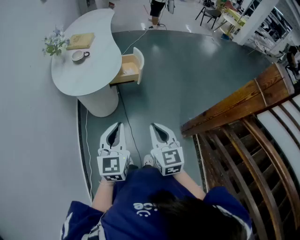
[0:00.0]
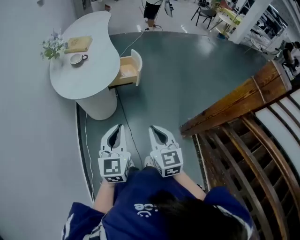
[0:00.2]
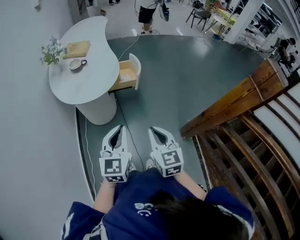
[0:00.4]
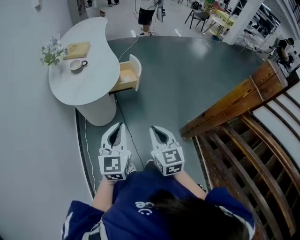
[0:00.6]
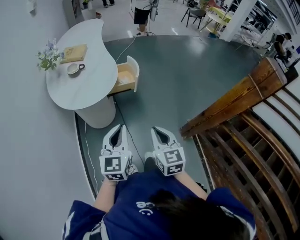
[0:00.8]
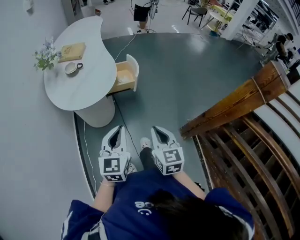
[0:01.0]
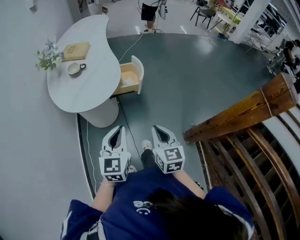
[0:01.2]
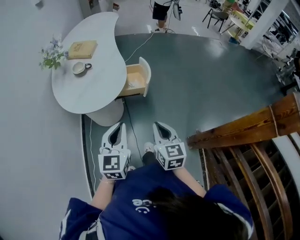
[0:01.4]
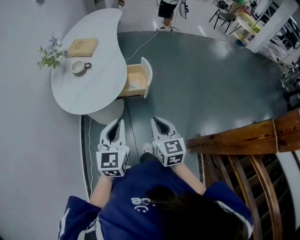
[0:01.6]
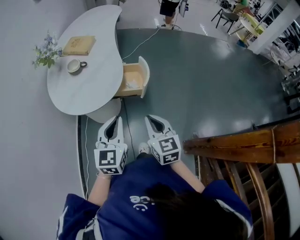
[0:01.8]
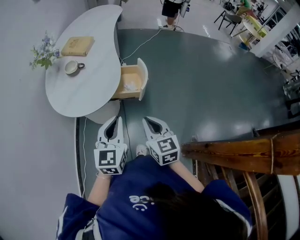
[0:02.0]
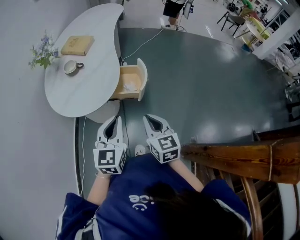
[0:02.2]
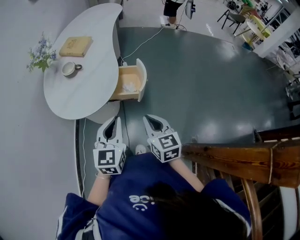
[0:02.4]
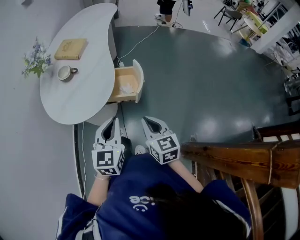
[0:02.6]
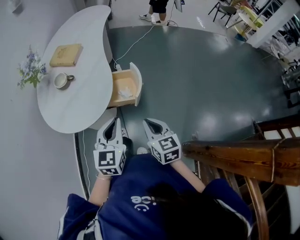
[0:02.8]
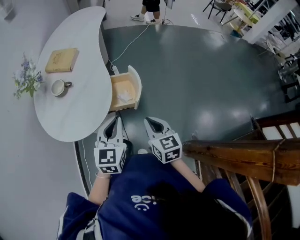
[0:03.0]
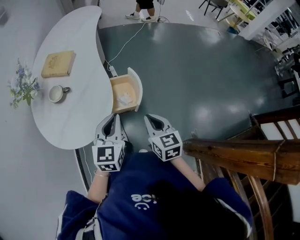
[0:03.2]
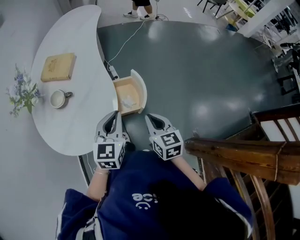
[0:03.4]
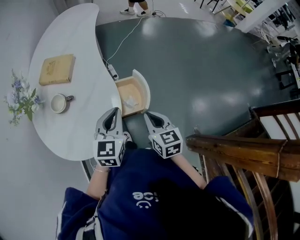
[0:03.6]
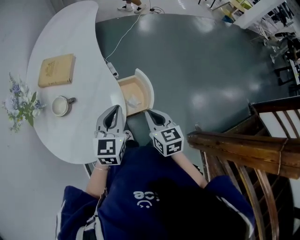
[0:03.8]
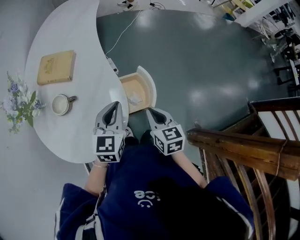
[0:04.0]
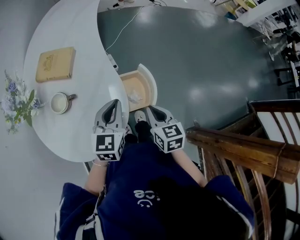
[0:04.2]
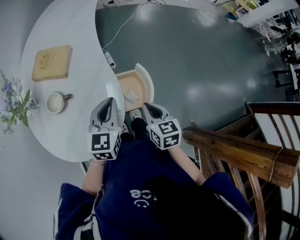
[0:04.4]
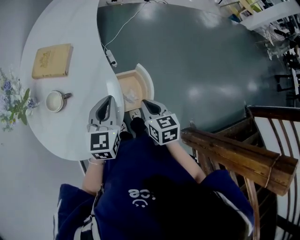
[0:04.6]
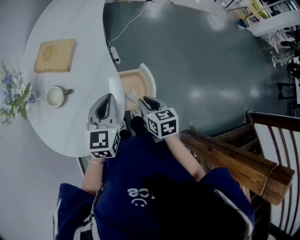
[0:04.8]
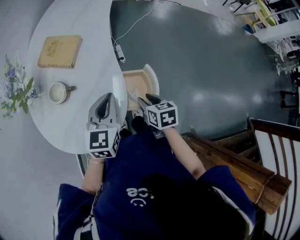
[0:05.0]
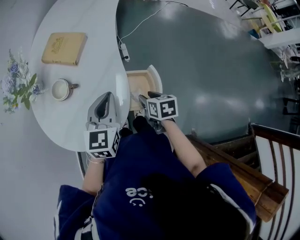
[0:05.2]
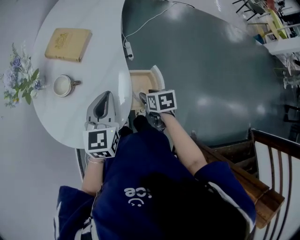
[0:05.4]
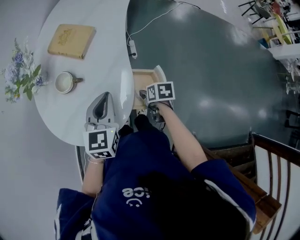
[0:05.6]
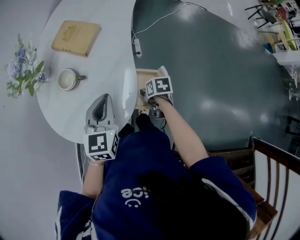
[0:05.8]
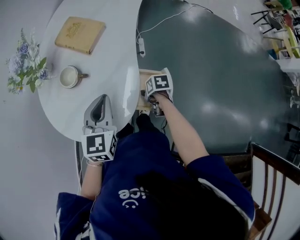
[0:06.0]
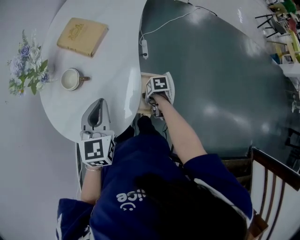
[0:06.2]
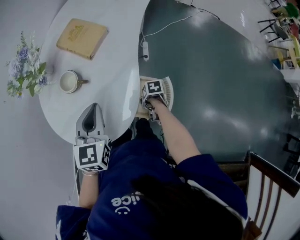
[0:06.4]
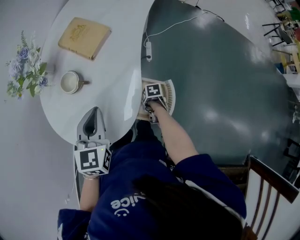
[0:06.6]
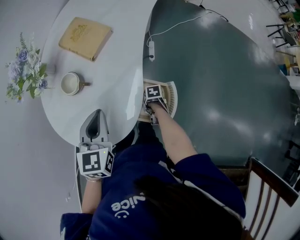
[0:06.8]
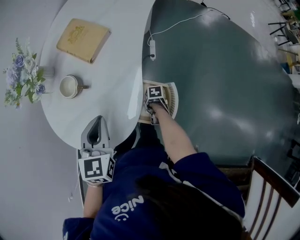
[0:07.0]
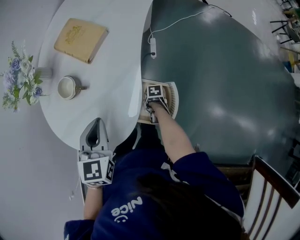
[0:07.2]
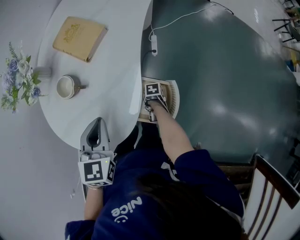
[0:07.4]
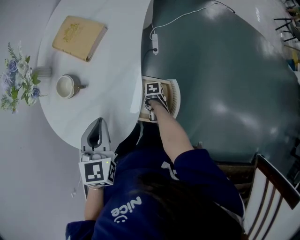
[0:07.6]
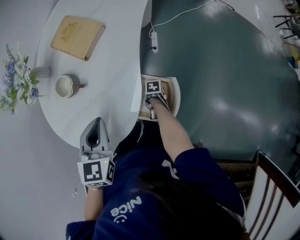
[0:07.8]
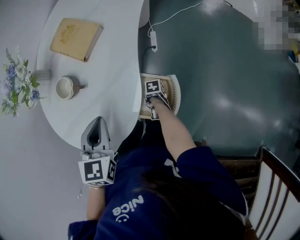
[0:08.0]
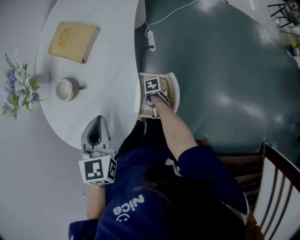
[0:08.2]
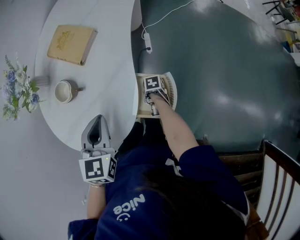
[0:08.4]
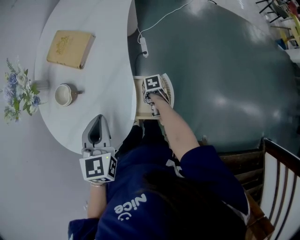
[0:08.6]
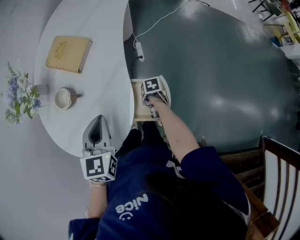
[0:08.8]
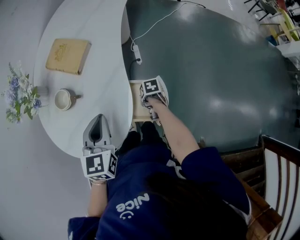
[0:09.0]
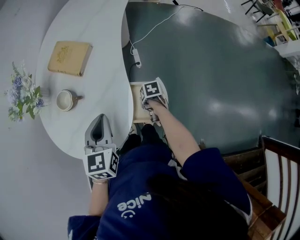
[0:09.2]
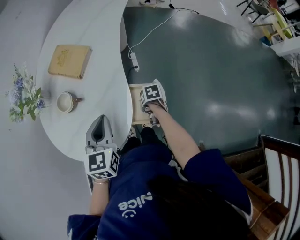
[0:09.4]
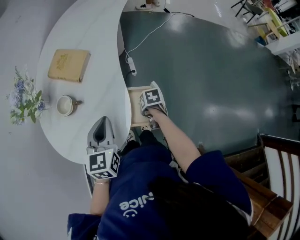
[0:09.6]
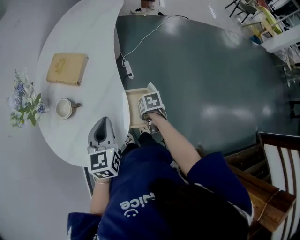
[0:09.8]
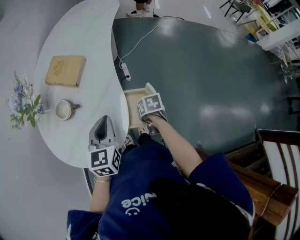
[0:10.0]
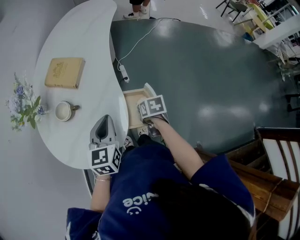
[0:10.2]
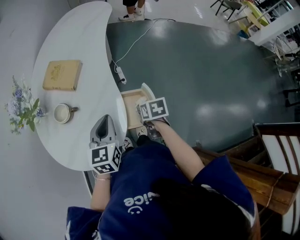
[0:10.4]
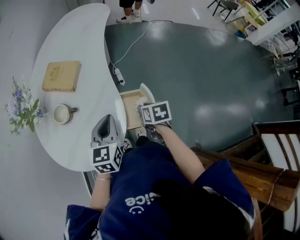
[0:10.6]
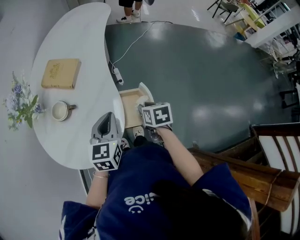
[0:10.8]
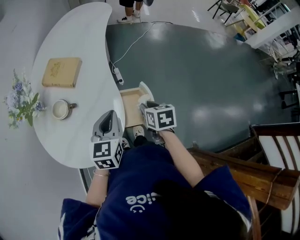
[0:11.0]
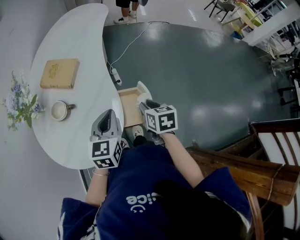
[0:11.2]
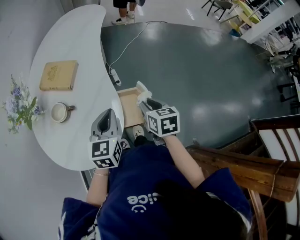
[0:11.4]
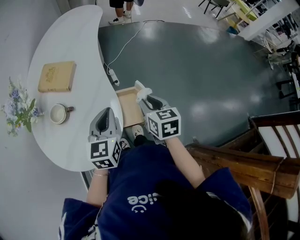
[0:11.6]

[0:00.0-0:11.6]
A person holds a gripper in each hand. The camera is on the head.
0:00.0 to 0:01.4: Both grippers travel together forward, about 15 cm.
0:01.4 to 0:02.8: Both grippers travel together forward and to the right, some 15 cm.
0:02.8 to 0:04.4: Both grippers move forward and to the left, roughly 20 cm.
0:04.4 to 0:05.8: The right gripper is displaced downward by about 15 cm, swivels about 50 degrees, and opens up. Meanwhile the left gripper changes place by some 5 cm, and swivels some 20 degrees.
0:05.8 to 0:07.2: The right gripper goes about 15 cm downward, and changes its angle by approximately 30 degrees.
0:07.2 to 0:08.8: The right gripper shifts by some 5 cm, and closes up.
0:08.8 to 0:10.2: The right gripper is displaced upward by approximately 15 cm, and changes its angle by some 30 degrees.
0:10.2 to 0:11.6: The right gripper goes approximately 15 cm upward, and changes its angle by approximately 30 degrees.

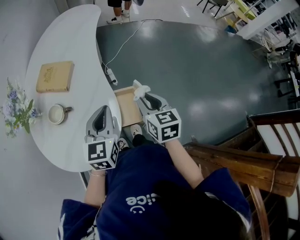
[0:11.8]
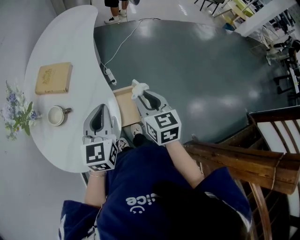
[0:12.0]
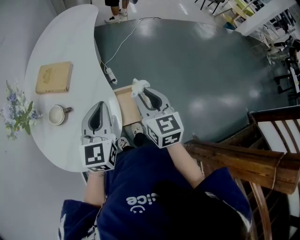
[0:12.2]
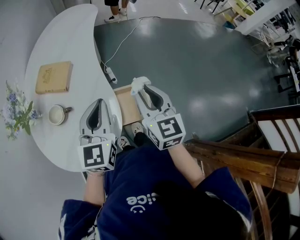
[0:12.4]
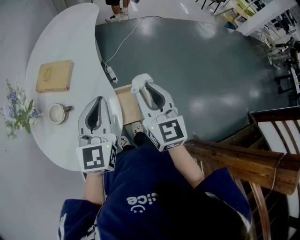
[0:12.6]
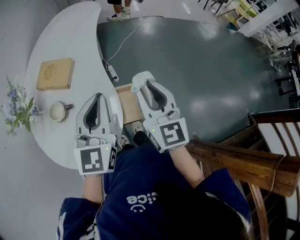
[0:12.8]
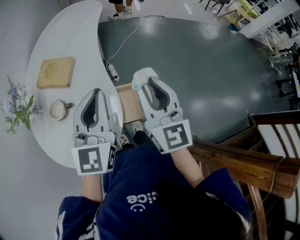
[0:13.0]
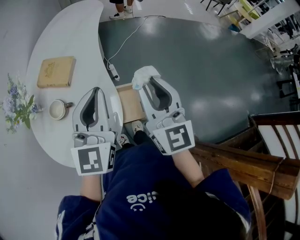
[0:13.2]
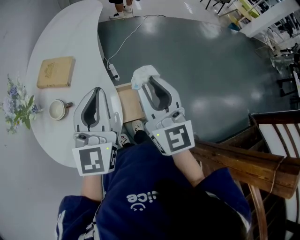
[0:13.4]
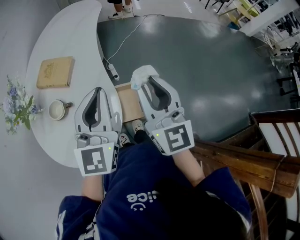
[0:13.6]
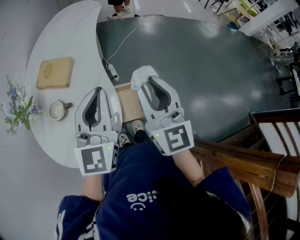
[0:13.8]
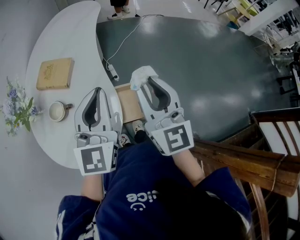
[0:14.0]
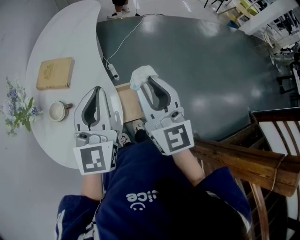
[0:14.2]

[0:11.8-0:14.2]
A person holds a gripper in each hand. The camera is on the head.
0:11.8 to 0:13.0: Both grippers travel together upward, about 15 cm. The right gripper tips its fingers upward by approximately 30 degrees.
0:13.0 to 0:14.2: The grippers stay close to where they were, moving slightly.

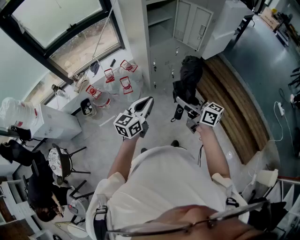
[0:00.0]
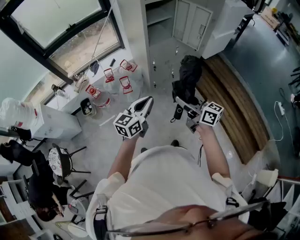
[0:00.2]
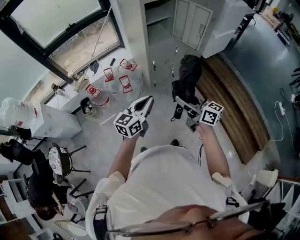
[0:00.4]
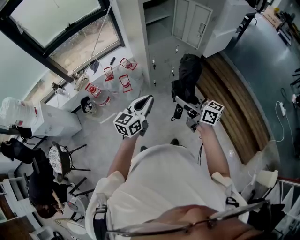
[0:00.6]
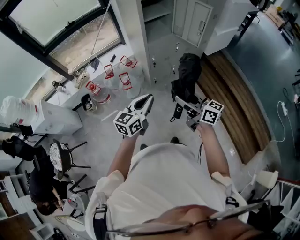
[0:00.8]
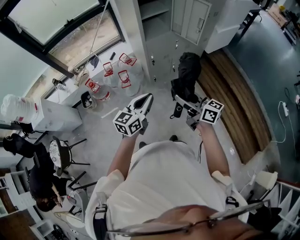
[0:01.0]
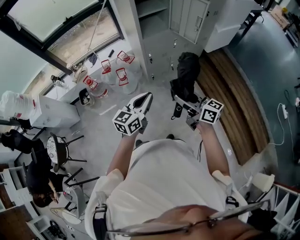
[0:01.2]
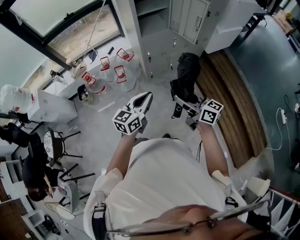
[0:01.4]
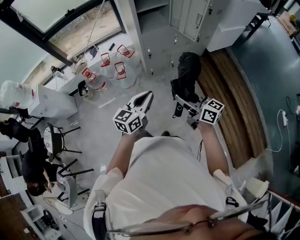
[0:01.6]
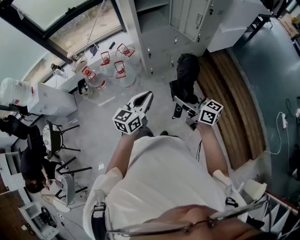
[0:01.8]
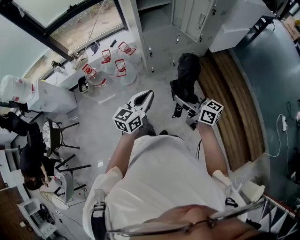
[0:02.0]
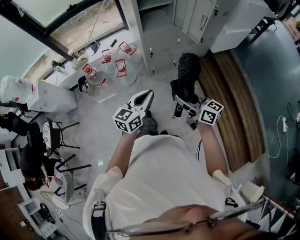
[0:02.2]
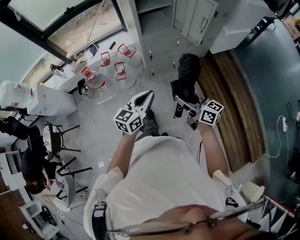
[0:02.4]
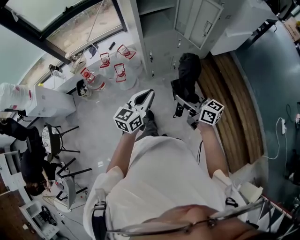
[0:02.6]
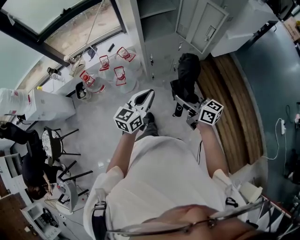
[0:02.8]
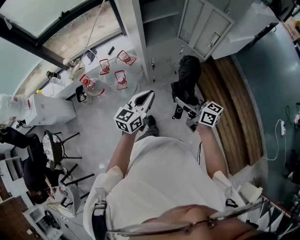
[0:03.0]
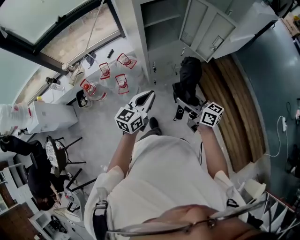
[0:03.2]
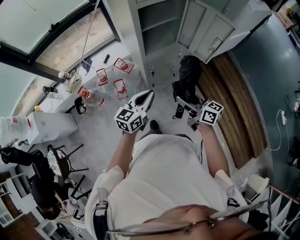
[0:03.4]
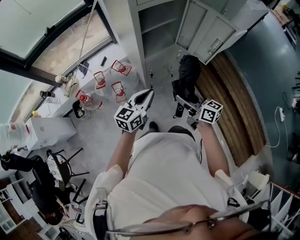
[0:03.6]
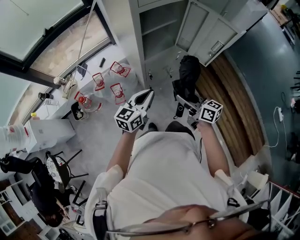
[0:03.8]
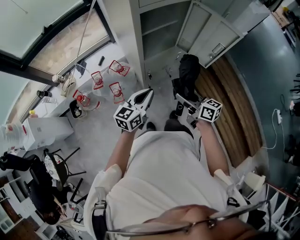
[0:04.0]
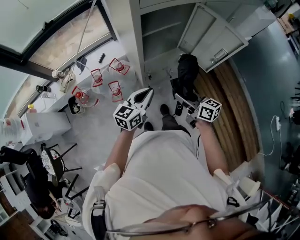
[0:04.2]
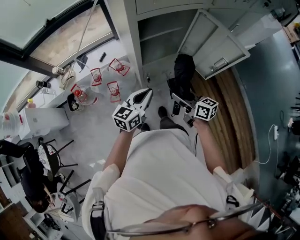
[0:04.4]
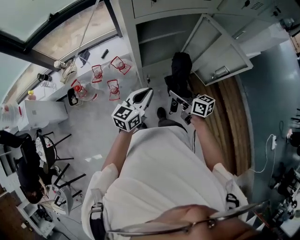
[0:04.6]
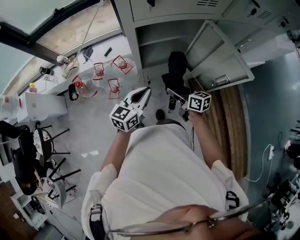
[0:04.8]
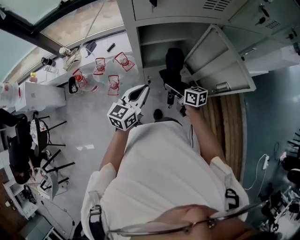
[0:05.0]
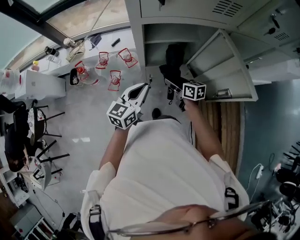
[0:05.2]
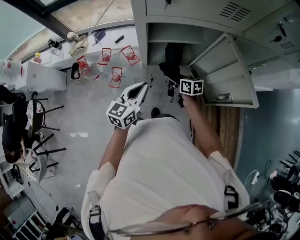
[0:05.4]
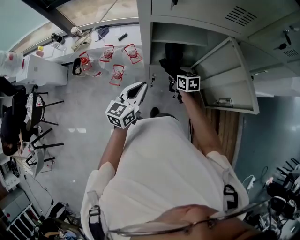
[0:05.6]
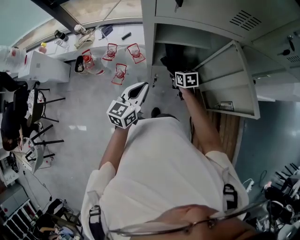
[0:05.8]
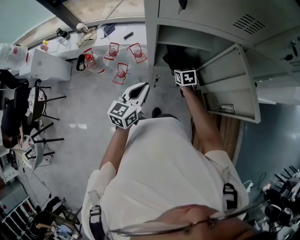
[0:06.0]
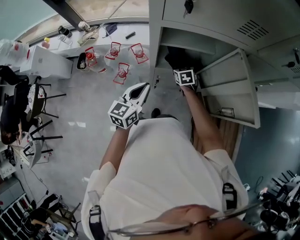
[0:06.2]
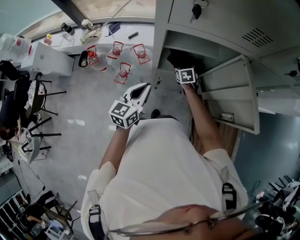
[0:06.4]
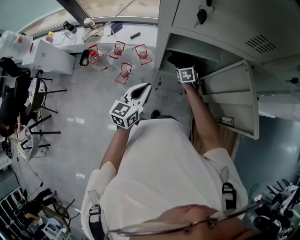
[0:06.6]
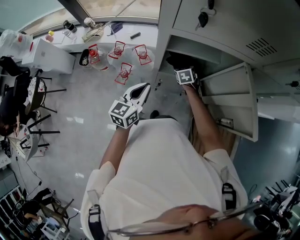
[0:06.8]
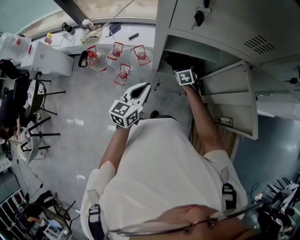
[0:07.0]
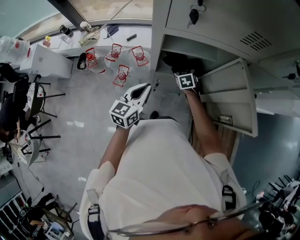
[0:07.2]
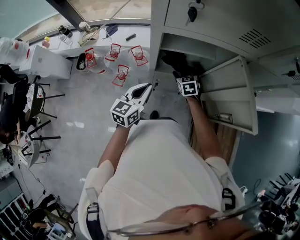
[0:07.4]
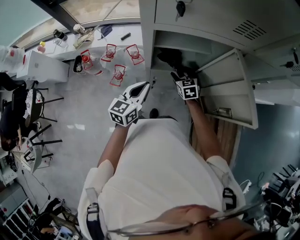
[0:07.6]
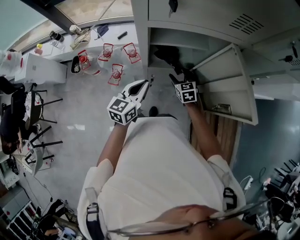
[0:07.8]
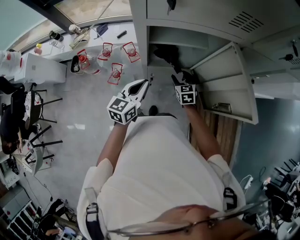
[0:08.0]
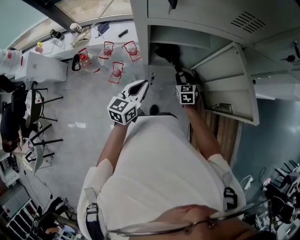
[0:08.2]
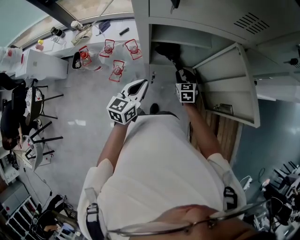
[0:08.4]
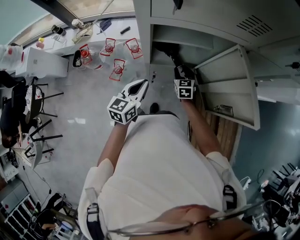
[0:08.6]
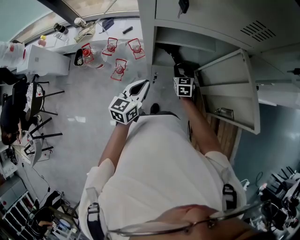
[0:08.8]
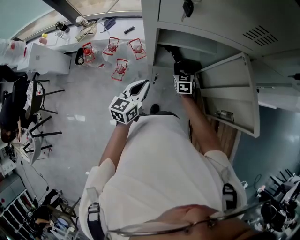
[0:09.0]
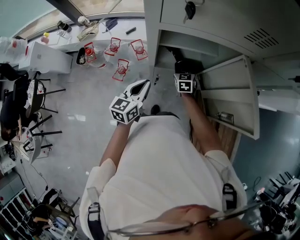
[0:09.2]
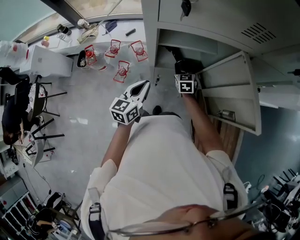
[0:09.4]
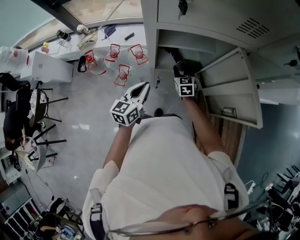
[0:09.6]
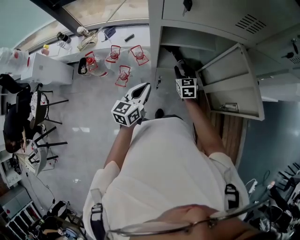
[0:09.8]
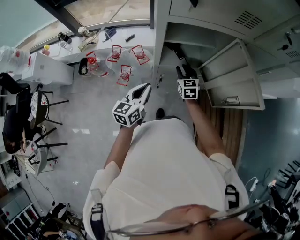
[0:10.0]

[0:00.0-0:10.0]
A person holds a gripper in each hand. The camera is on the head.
0:00.0 to 0:01.4: The two grippers go roughly 10 cm to the right.
0:01.4 to 0:02.8: The grippers both shift forward by about 15 cm.
0:02.8 to 0:04.2: Both grippers travel together forward, approximately 20 cm.
0:04.2 to 0:05.8: The left gripper travels forward by some 10 cm, and rotates some 30 degrees. Meanwhile the right gripper heads forward and downward, covering approximately 30 cm, and angles its fingers downward, by some 30 degrees.
0:05.8 to 0:07.2: The right gripper travels forward by some 5 cm, swivels some 30 degrees, and opens up.
0:07.2 to 0:08.6: The right gripper is displaced backward by approximately 5 cm, and closes up.
0:08.6 to 0:10.0: The right gripper travels upward by approximately 5 cm; the left gripper moves roughly 5 cm.
